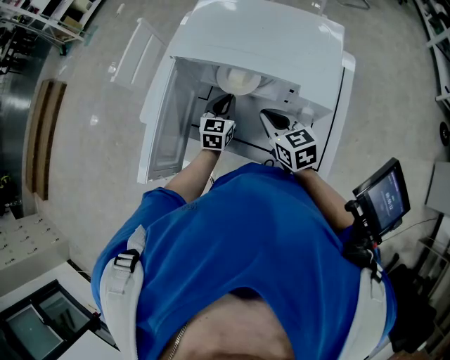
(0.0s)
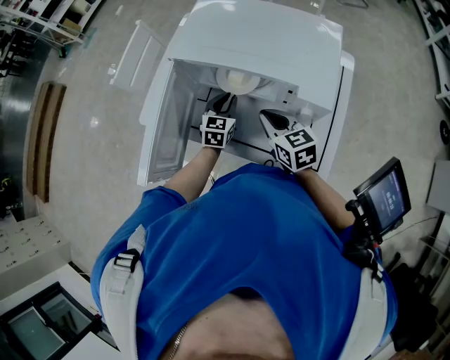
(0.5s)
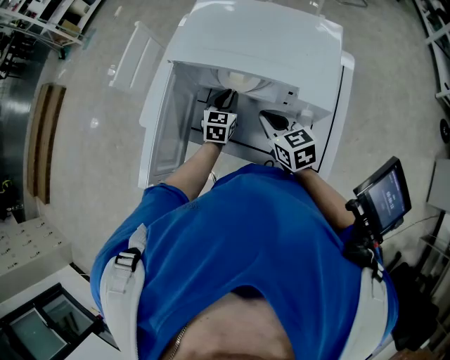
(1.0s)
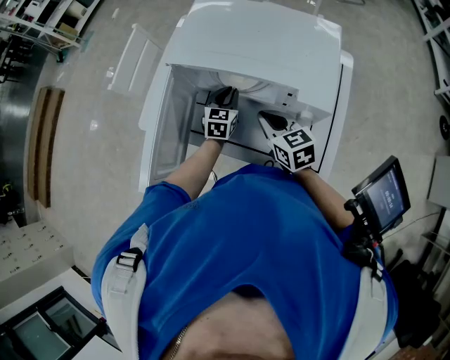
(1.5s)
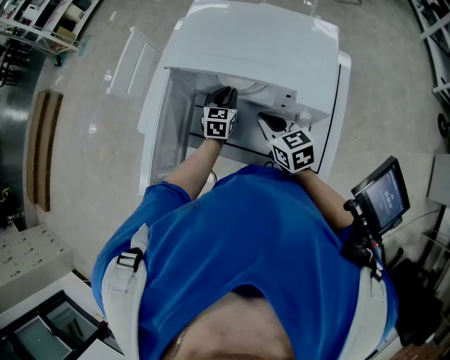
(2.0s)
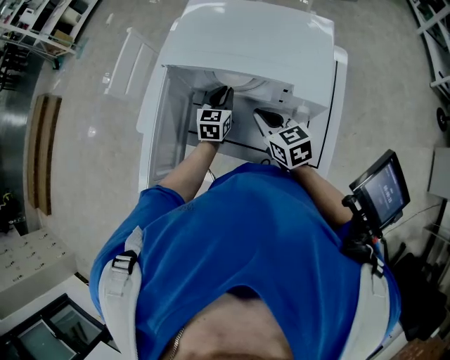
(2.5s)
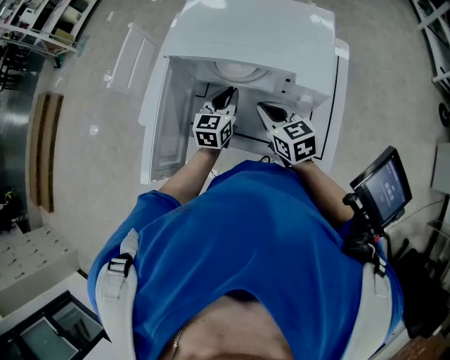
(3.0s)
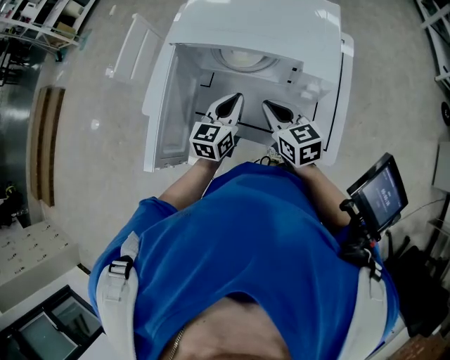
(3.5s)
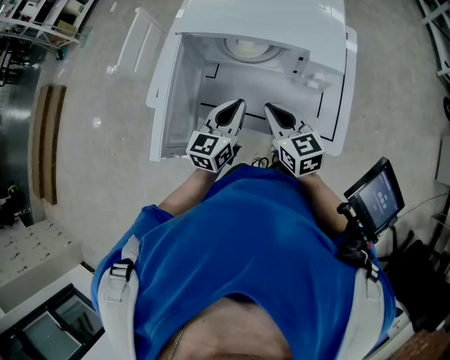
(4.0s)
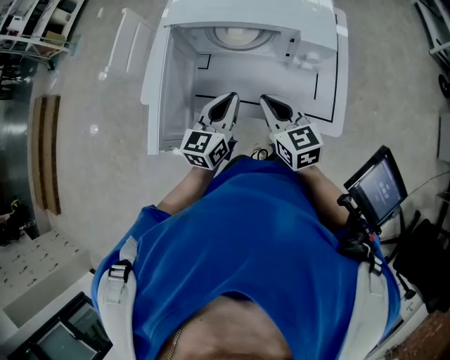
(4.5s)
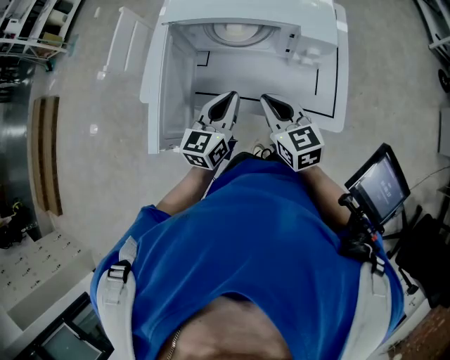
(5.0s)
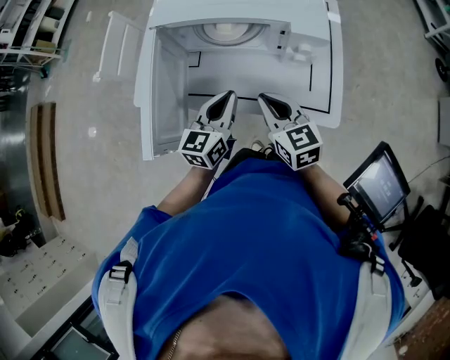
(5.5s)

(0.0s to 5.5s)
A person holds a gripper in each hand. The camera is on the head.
0.0s - 2.0s: The grippers move only a little.
2.0s - 3.5s: The left gripper moves backward and upward, roughly 15 cm.
3.5s - 5.5s: Both grippers travel together backward, some 5 cm.

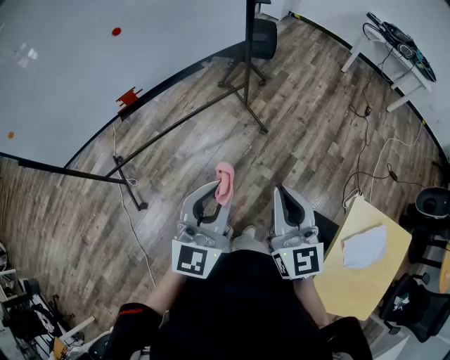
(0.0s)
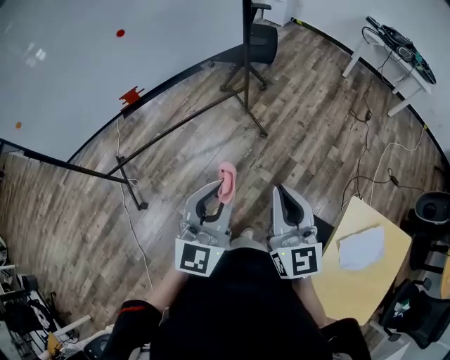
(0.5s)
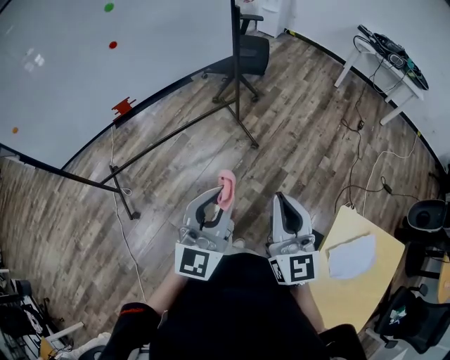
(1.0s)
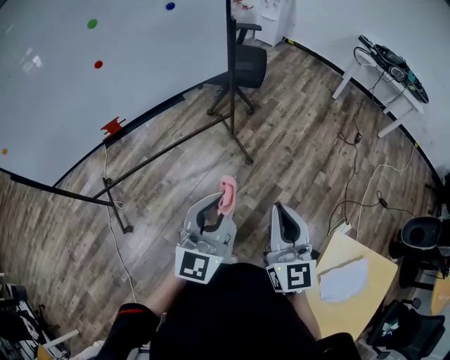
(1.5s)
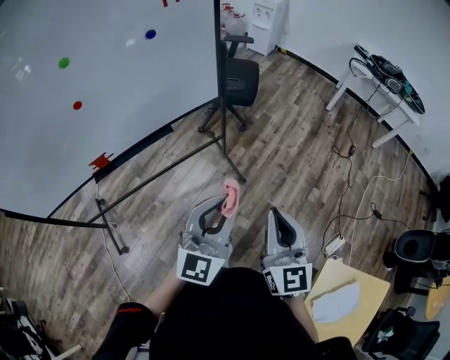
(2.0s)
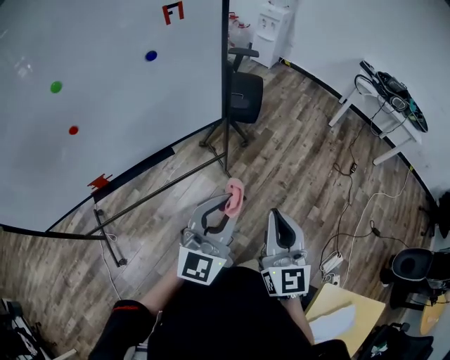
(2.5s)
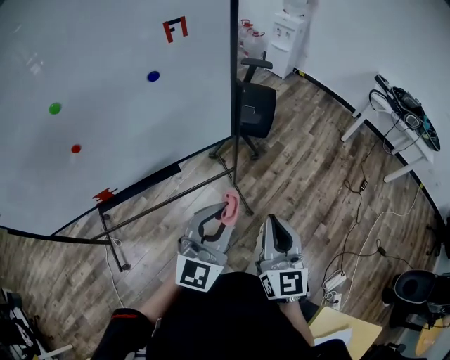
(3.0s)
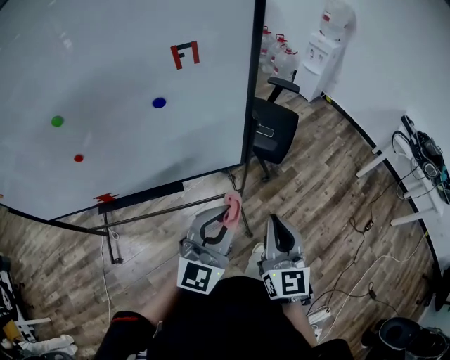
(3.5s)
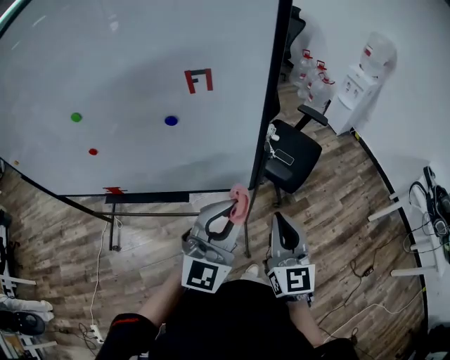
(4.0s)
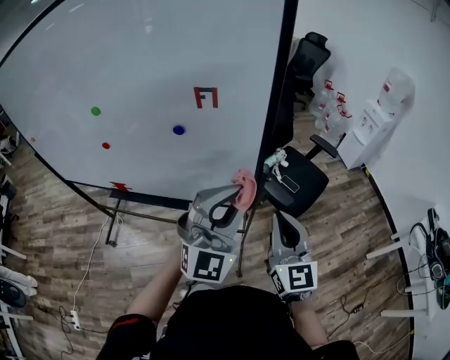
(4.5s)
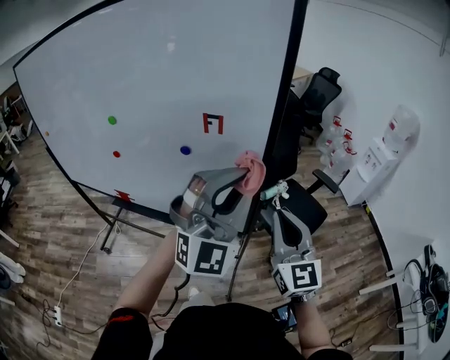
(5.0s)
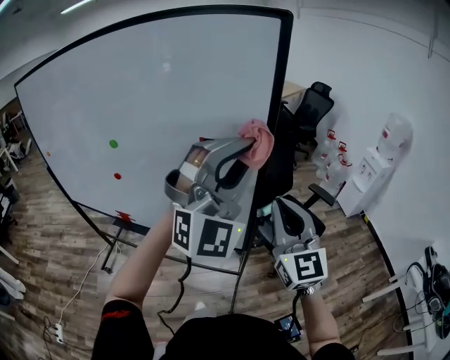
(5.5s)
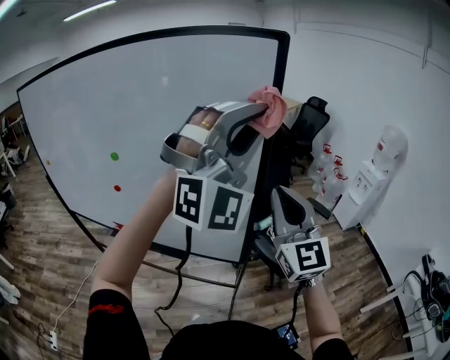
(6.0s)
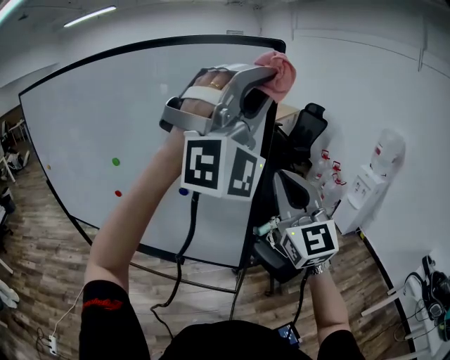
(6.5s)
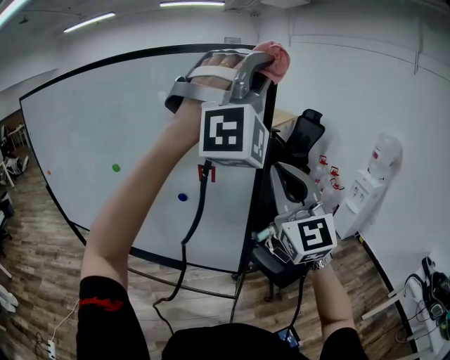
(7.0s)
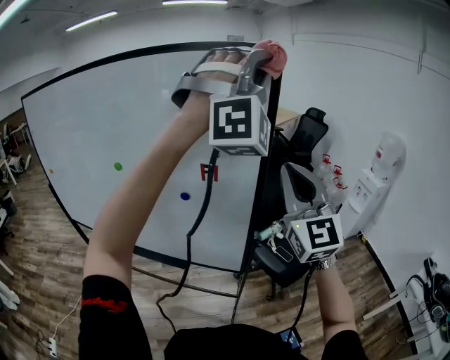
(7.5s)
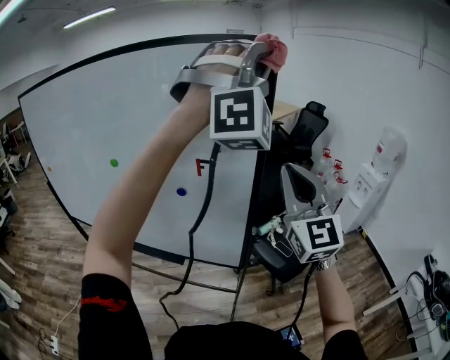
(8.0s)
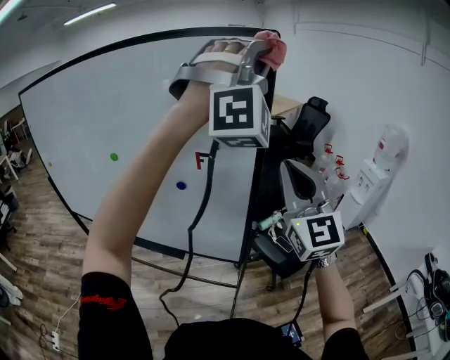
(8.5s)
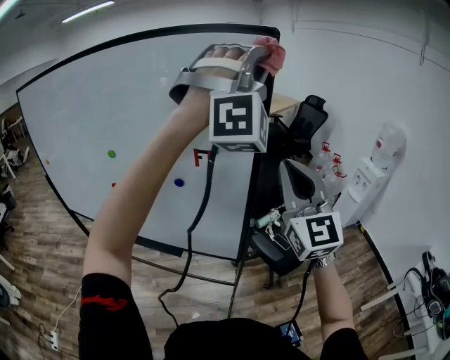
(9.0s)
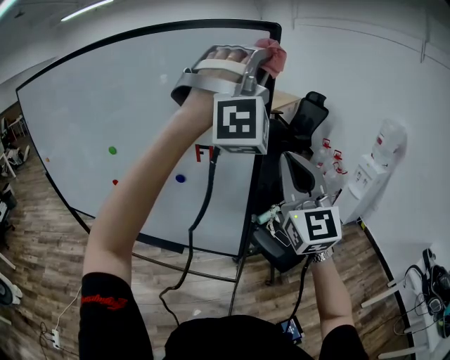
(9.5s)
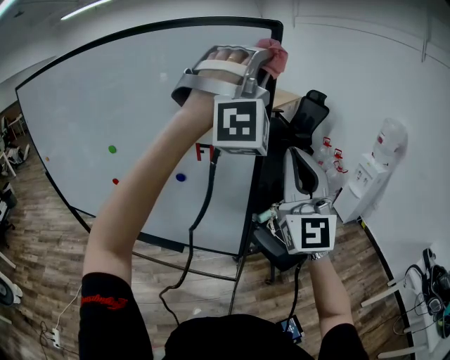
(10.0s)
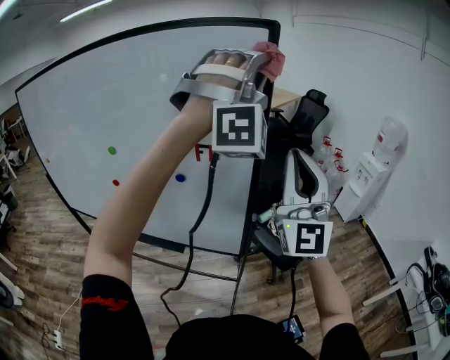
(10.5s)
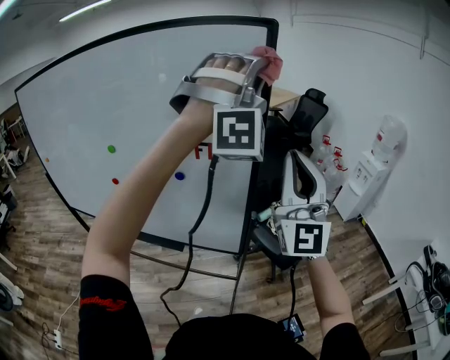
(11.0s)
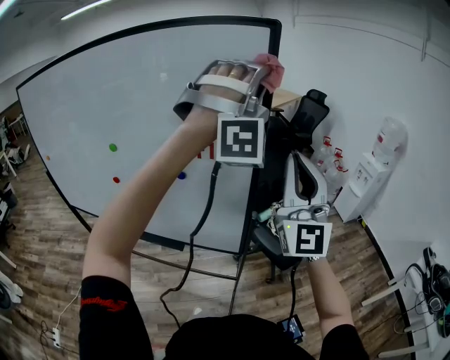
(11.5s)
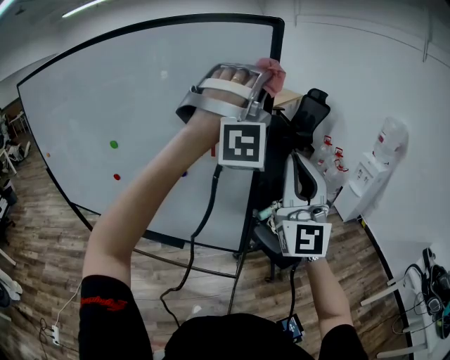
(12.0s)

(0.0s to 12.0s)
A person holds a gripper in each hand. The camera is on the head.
0.0s - 2.0s: The right gripper ends up about 20 cm from where it was.
2.0s - 4.0s: The right gripper changes place by about 40 cm, and turns by approximately 30 degrees.
4.0s - 6.0s: The right gripper is displaced upward by some 25 cm, and turns by about 30 degrees.
6.0s - 8.0s: The right gripper shifts approximately 5 cm upward.

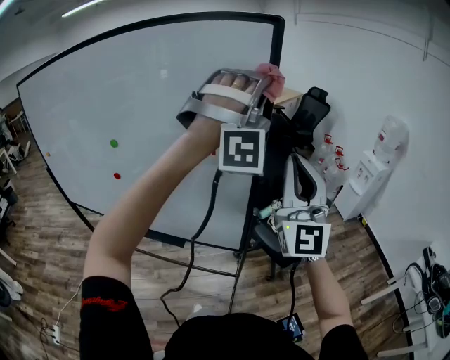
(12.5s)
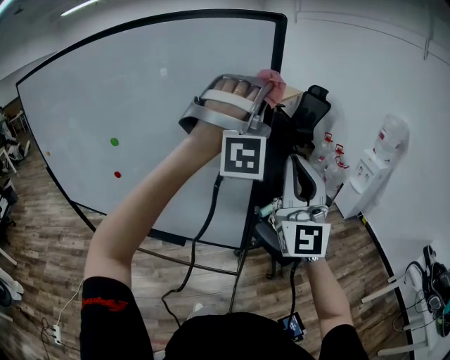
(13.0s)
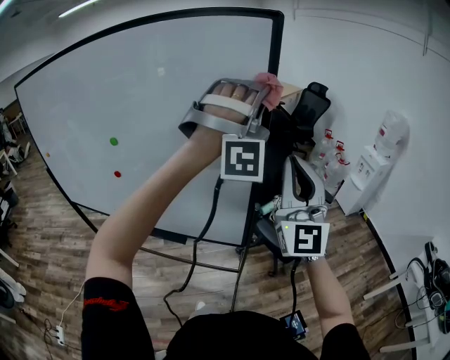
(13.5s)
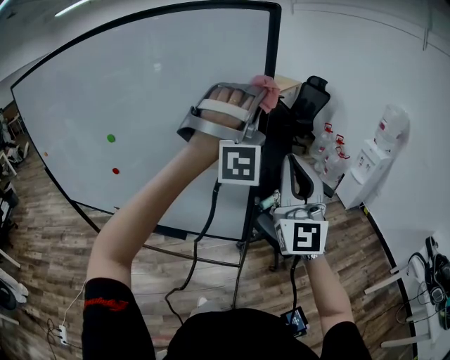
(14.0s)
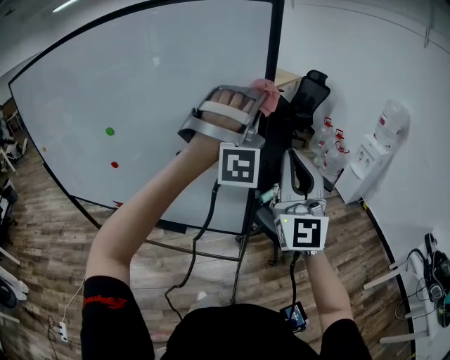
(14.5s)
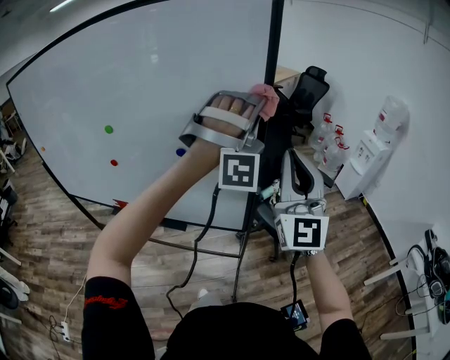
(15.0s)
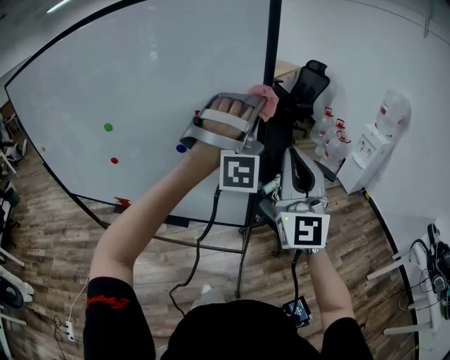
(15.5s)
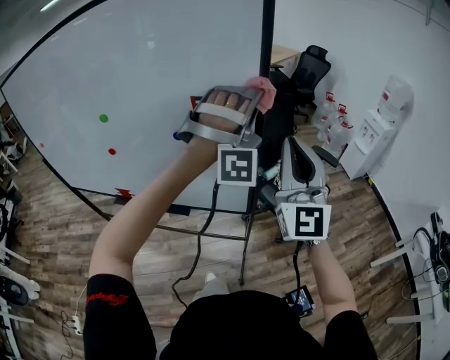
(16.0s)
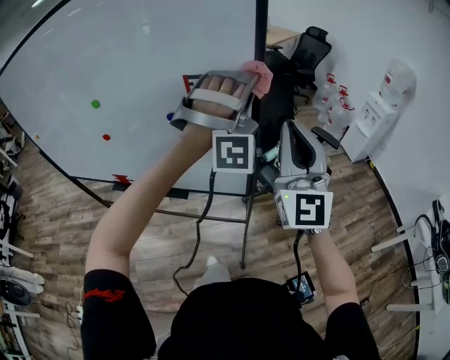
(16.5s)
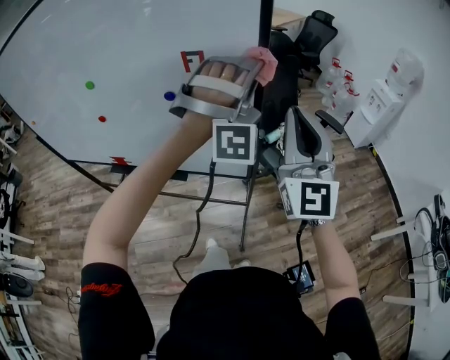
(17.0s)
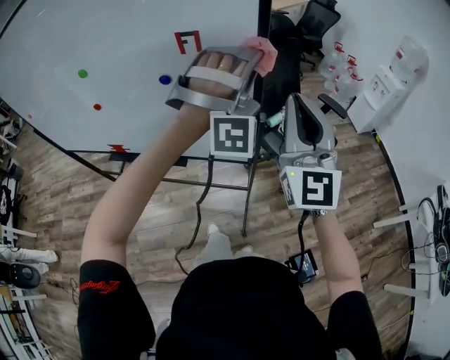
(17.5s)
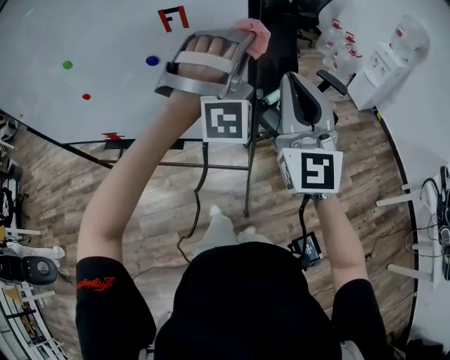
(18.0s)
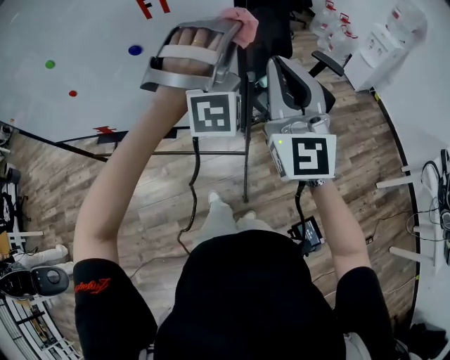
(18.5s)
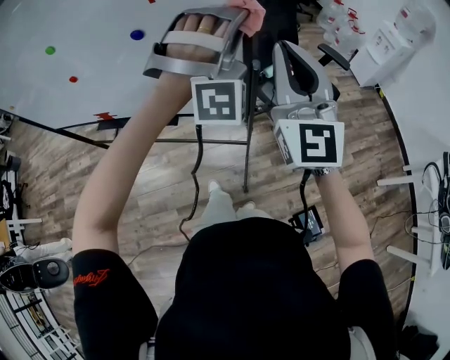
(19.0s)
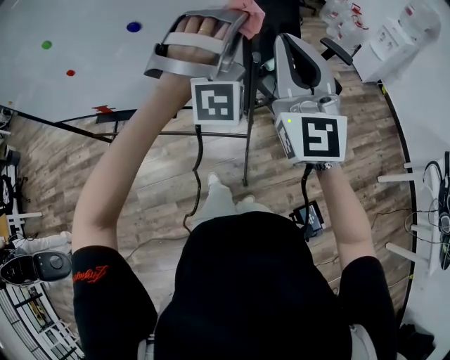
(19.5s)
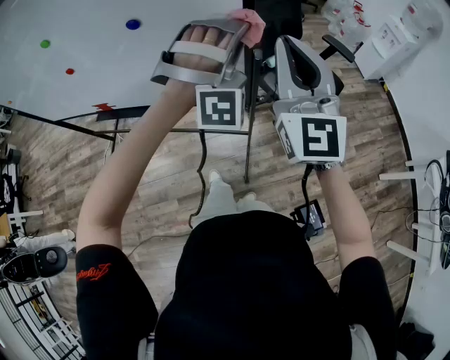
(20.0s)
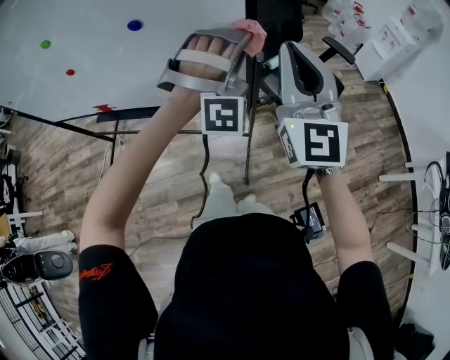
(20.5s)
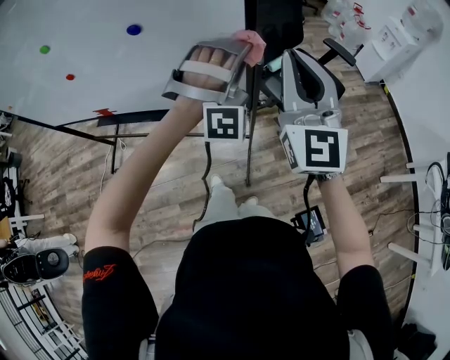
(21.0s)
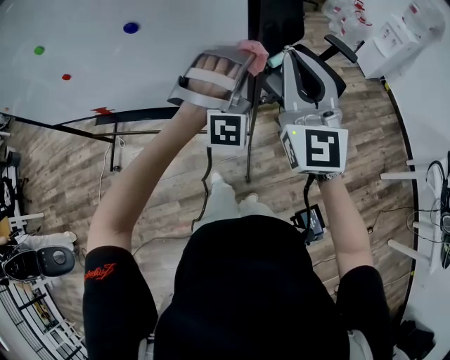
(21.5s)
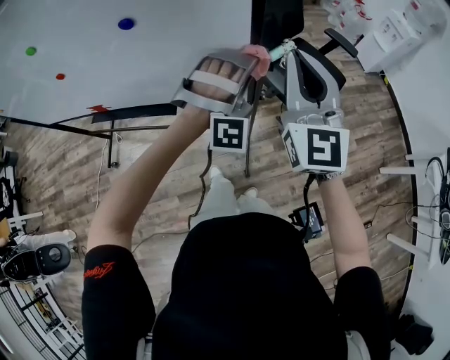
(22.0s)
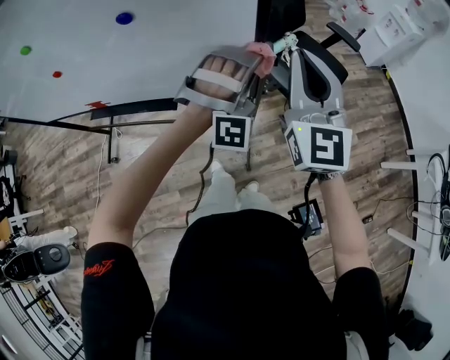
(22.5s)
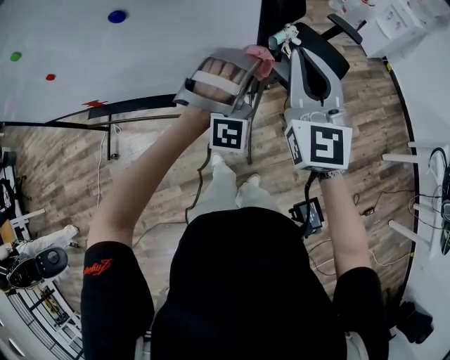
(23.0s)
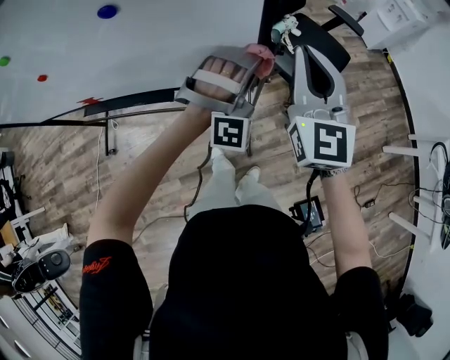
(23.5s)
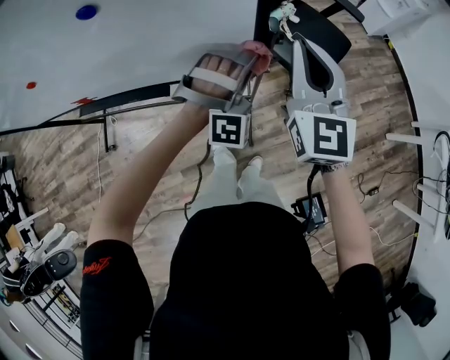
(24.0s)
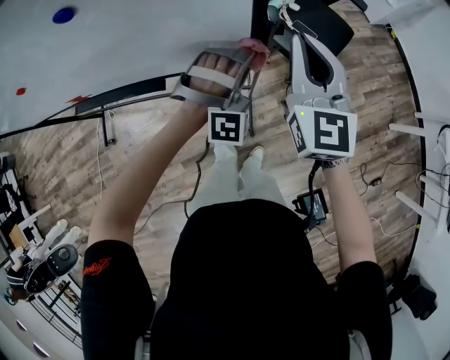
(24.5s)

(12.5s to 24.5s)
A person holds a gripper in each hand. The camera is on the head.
16.5s - 18.5s: The right gripper goes approximately 10 cm downward.
20.5s - 22.5s: The right gripper heads downward, covering some 5 cm.
22.5s - 24.5s: The right gripper moves downward, approximately 10 cm.
